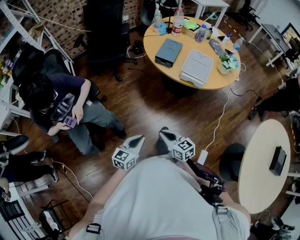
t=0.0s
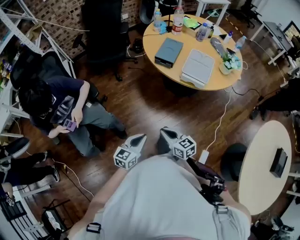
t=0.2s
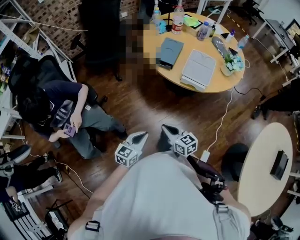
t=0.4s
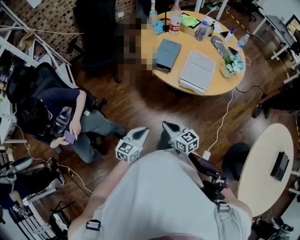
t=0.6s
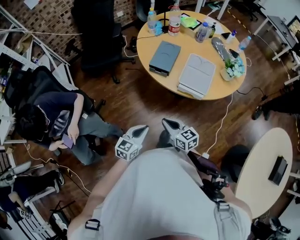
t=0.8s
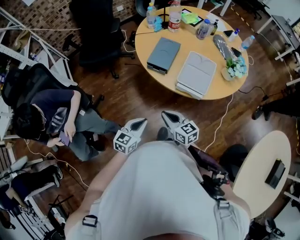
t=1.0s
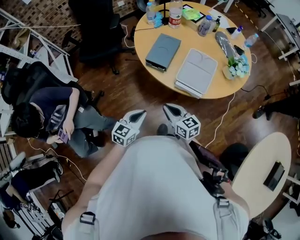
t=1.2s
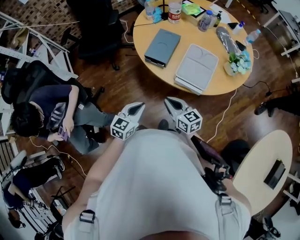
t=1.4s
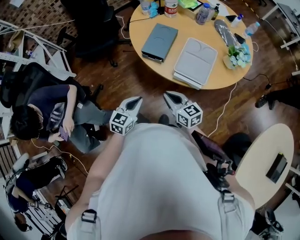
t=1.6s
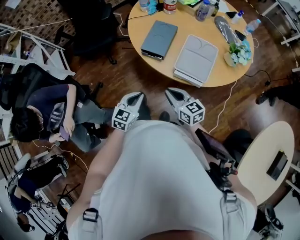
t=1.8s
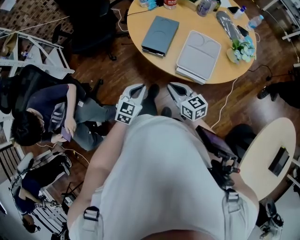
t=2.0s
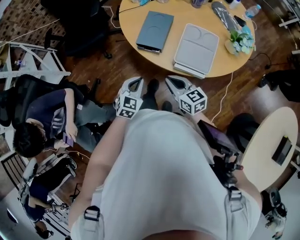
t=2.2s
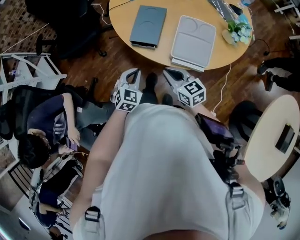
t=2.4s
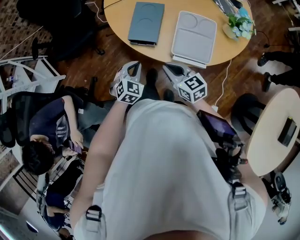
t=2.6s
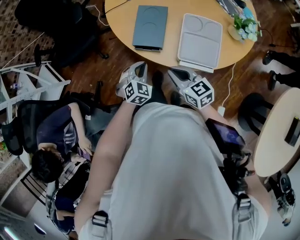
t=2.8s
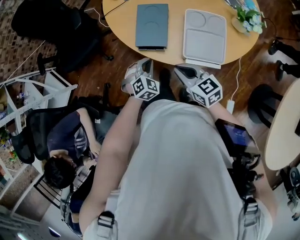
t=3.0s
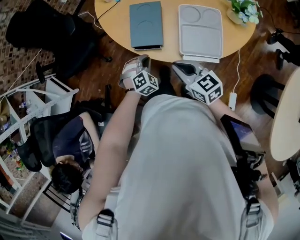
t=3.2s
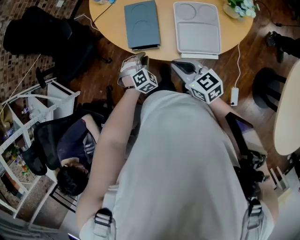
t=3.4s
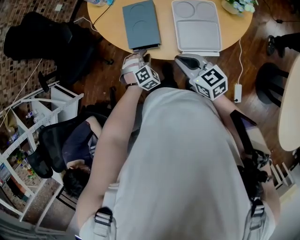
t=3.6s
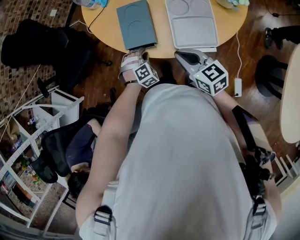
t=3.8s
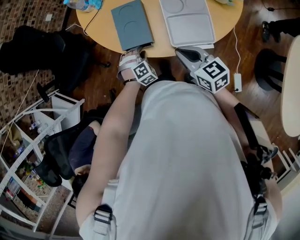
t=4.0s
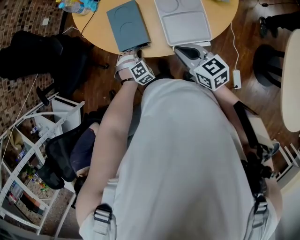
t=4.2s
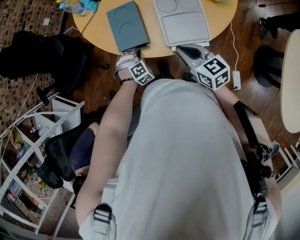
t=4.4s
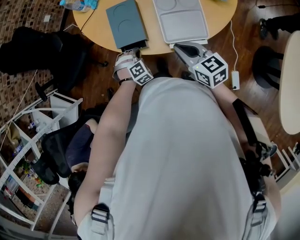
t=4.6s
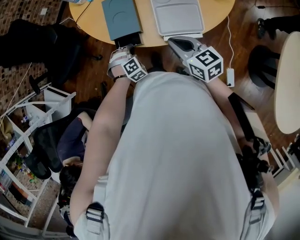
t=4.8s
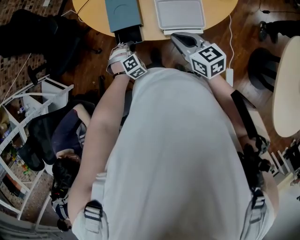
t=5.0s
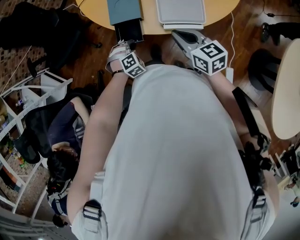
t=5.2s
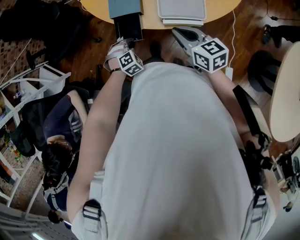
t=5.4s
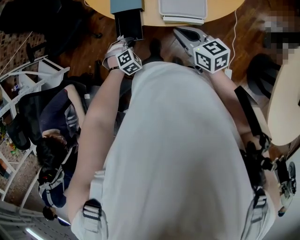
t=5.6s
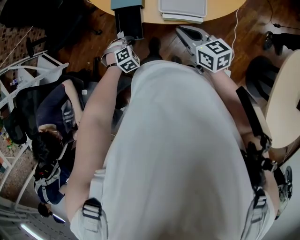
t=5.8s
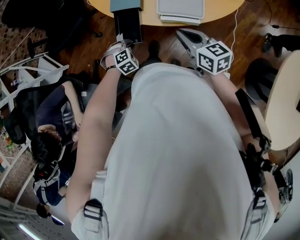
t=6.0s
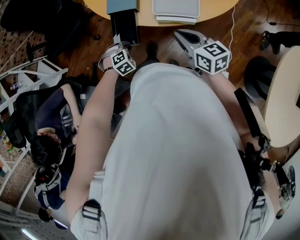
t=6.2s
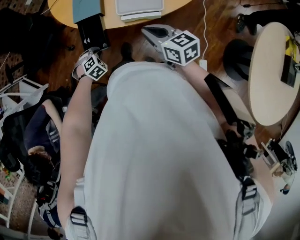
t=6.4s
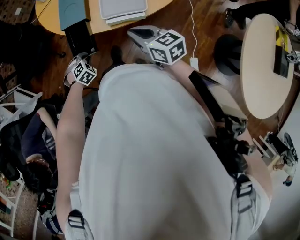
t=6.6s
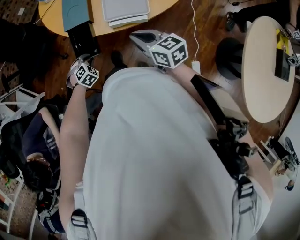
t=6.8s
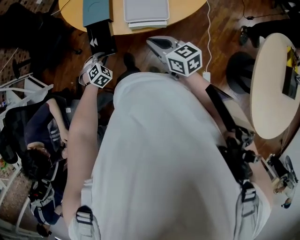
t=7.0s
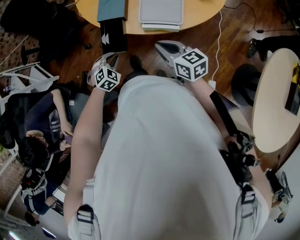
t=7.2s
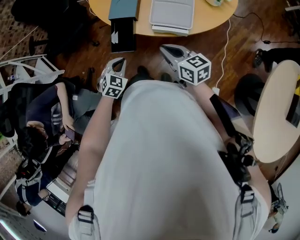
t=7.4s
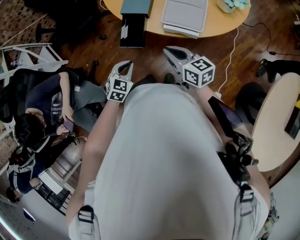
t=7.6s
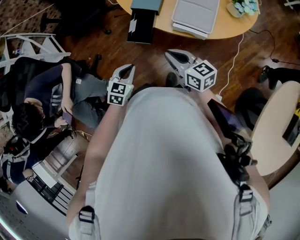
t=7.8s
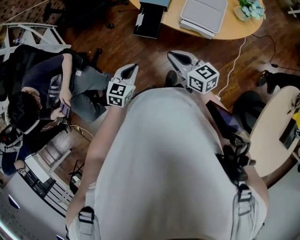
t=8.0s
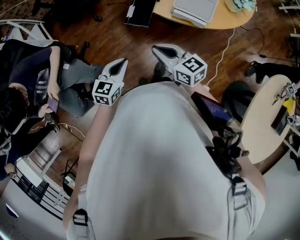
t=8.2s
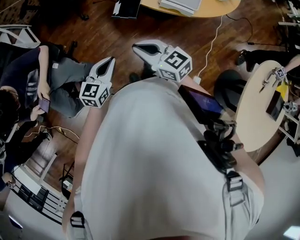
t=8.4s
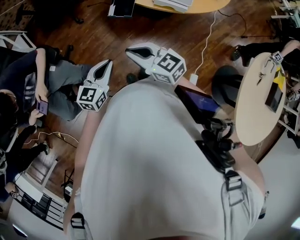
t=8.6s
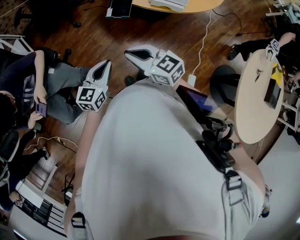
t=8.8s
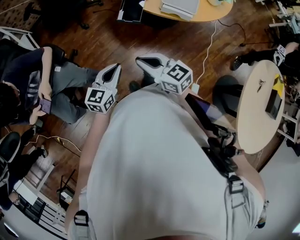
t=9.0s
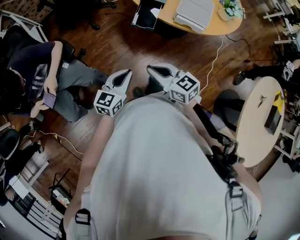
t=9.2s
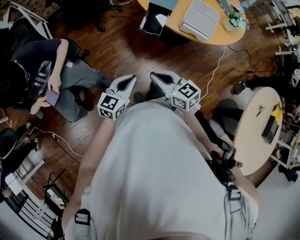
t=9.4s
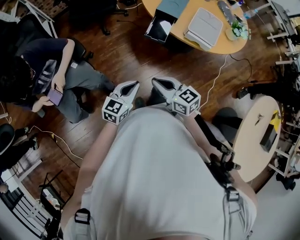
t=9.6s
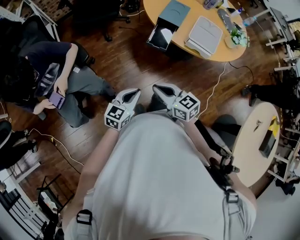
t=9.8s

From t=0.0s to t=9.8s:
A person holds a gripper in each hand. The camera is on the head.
From t=0.0s to t=1.4s: The right gripper goes roughly 30 cm forward and to the right. Meanwhile the left gripper heads forward, covering roughly 30 cm.
From t=1.4s to t=2.8s: The right gripper moves forward, about 10 cm; the left gripper is displaced forward and downward by some 20 cm, and rotates roughly 40 degrees.
From t=2.8s to t=4.2s: The left gripper moves downward and forward, some 10 cm, and rolls clockwise, seen from behind, by approximately 40 degrees, while the right gripper shifts about 5 cm to the right.
From t=4.2s to t=5.6s: The left gripper travels backward by roughly 15 cm. The right gripper goes roughly 5 cm backward.
From t=5.6s to t=7.0s: The right gripper goes roughly 5 cm backward.
From t=7.0s to t=8.4s: The right gripper moves to the left and backward, about 25 cm, and turns by some 30 degrees. The left gripper goes roughly 30 cm backward, upward and to the left, and rotates around the line of its fingers by some 60 degrees, counterclockwise from behind.
From t=8.4s to t=9.8s: The right gripper moves backward and to the left, approximately 10 cm. Meanwhile the left gripper goes about 5 cm backward.

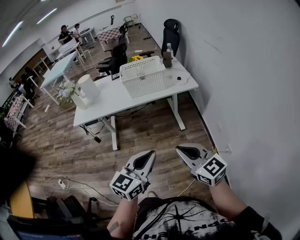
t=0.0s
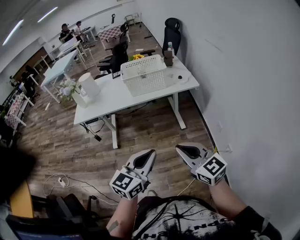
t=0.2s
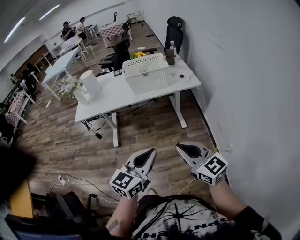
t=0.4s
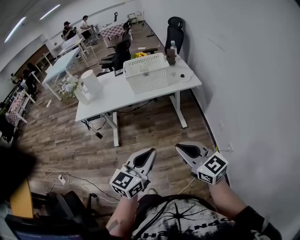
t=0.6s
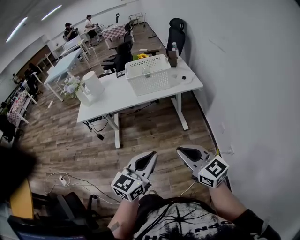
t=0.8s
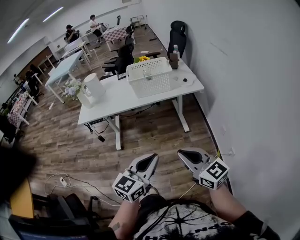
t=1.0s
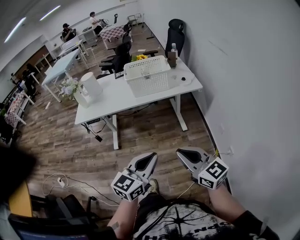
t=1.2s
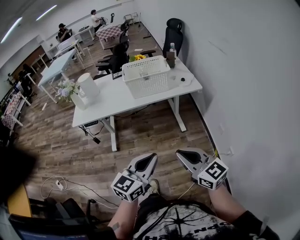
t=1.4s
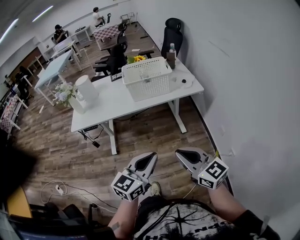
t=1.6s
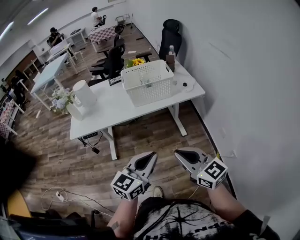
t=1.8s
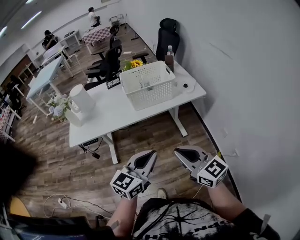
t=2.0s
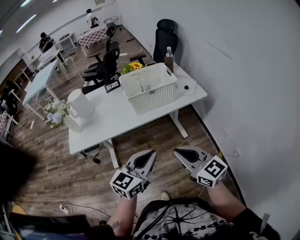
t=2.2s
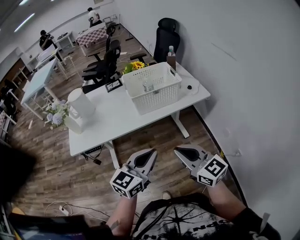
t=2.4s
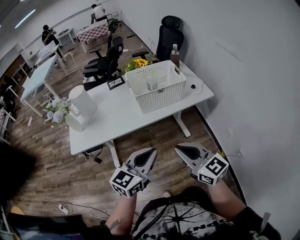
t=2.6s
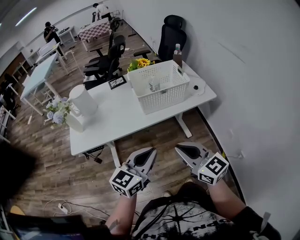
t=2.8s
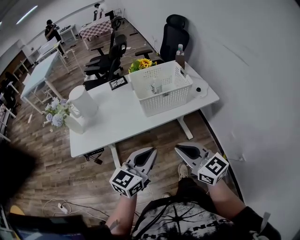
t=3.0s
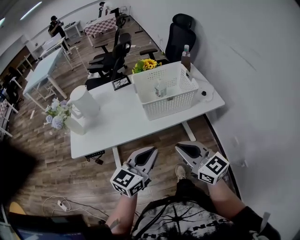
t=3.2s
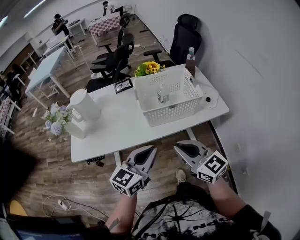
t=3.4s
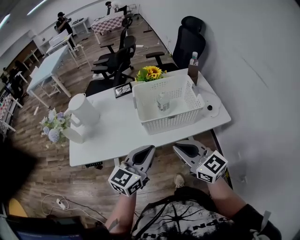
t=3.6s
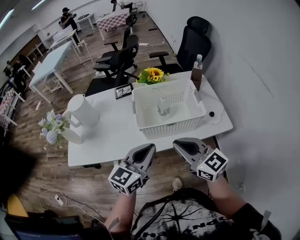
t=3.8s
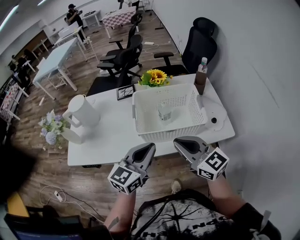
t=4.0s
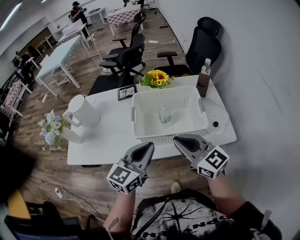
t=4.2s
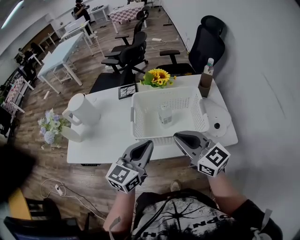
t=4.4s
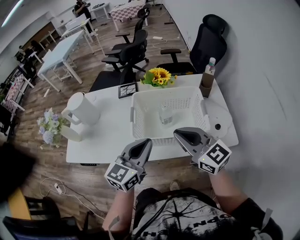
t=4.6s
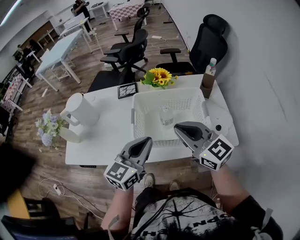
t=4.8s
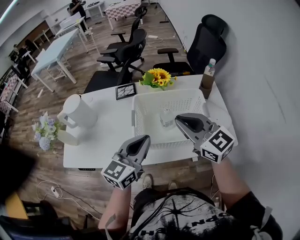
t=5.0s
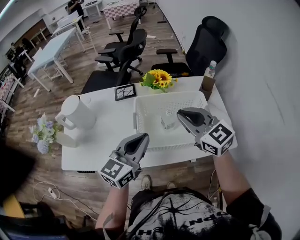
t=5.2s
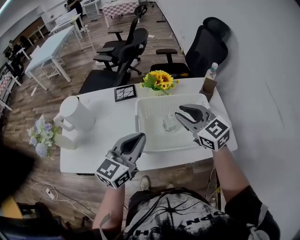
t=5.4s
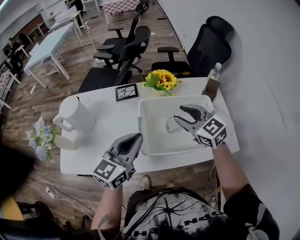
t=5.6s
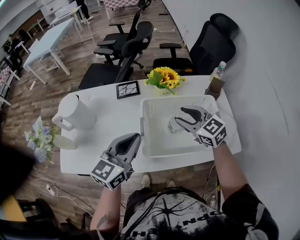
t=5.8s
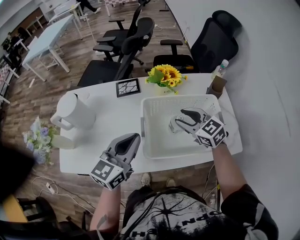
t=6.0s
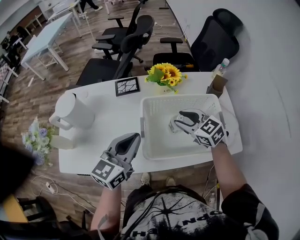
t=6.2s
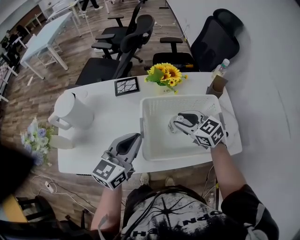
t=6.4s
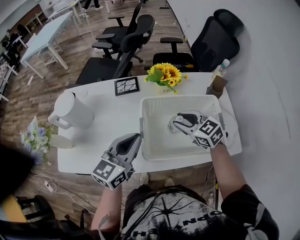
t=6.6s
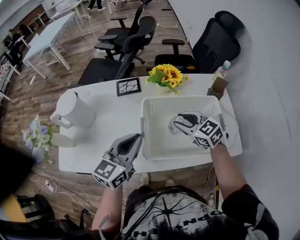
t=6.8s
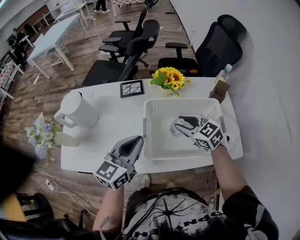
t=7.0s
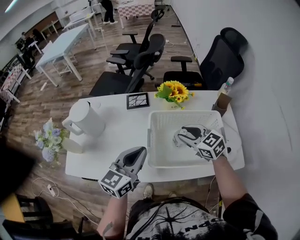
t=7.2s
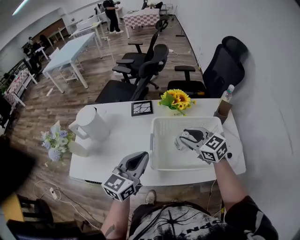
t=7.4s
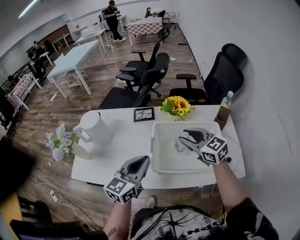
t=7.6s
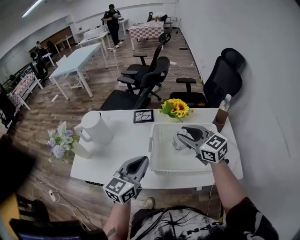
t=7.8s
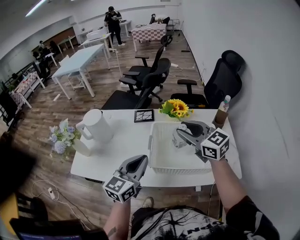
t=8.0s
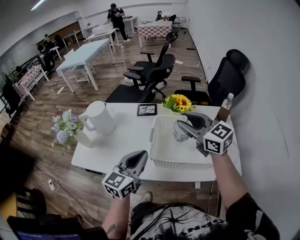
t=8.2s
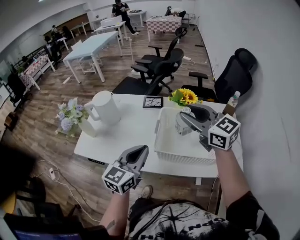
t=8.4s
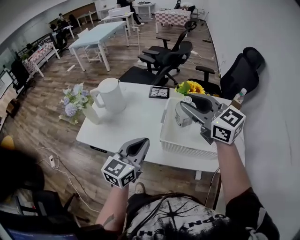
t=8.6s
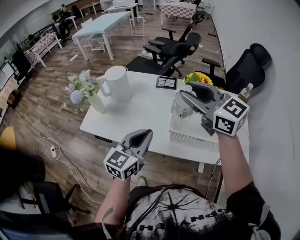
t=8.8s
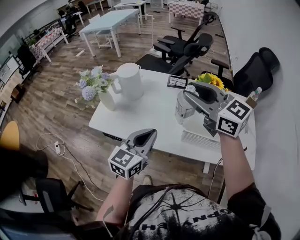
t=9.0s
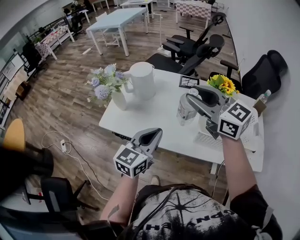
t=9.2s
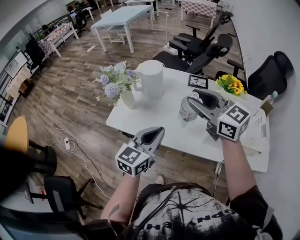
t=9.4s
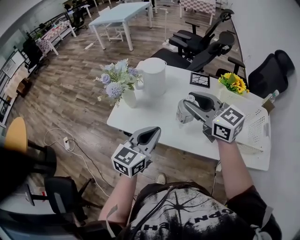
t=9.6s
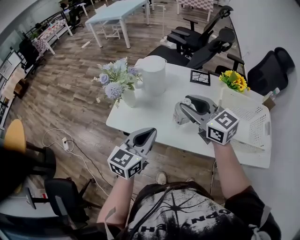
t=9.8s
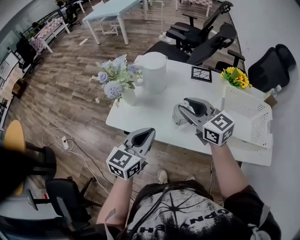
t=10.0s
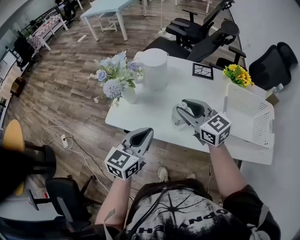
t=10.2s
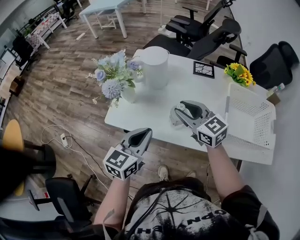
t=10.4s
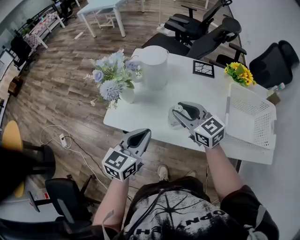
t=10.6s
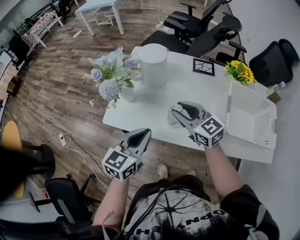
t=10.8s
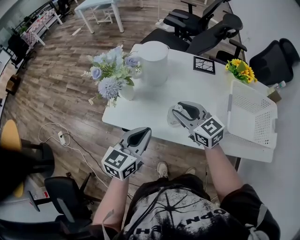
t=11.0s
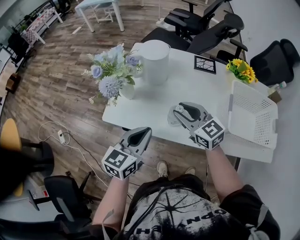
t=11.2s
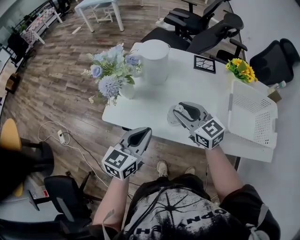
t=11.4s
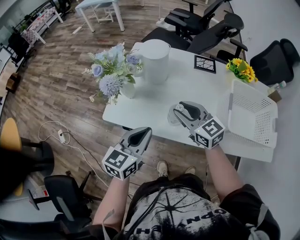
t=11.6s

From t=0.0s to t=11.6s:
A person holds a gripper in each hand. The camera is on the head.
From t=0.0s to t=1.4s: The grippers make only small movements.
From t=1.4s to t=2.8s: The grippers both shift forward and to the left by some 25 cm.
From t=2.8s to t=4.4s: The grippers both shift forward by approximately 30 cm.
From t=4.4s to t=5.8s: The right gripper moves forward, approximately 20 cm, swivels approximately 20 degrees, and opens. The left gripper heads forward and to the left, covering about 15 cm.
From t=5.8s to t=7.2s: There are only small adjustments of the grippers.
From t=7.2s to t=8.8s: The right gripper goes about 25 cm upward and to the left, and turns by some 30 degrees; the left gripper travels backward and to the left by some 15 cm.
From t=8.8s to t=10.2s: The left gripper heads to the left, covering about 20 cm. The right gripper moves to the left and downward, roughly 30 cm.
From t=10.2s to t=11.6s: The right gripper heads downward, covering about 5 cm.

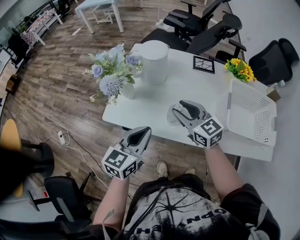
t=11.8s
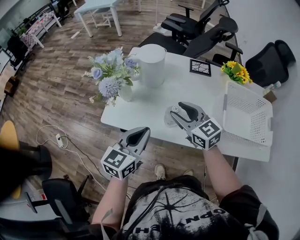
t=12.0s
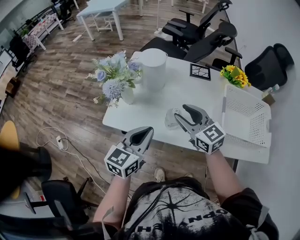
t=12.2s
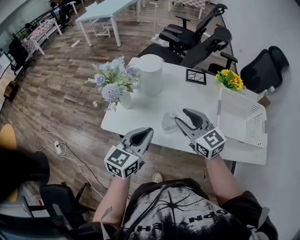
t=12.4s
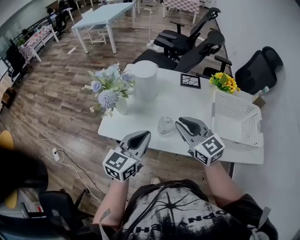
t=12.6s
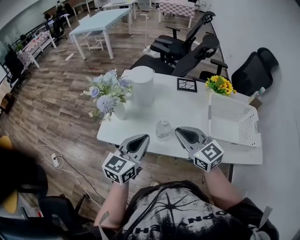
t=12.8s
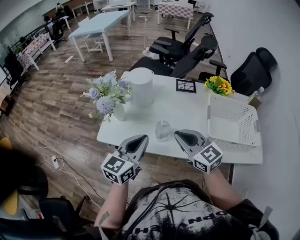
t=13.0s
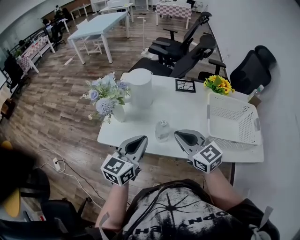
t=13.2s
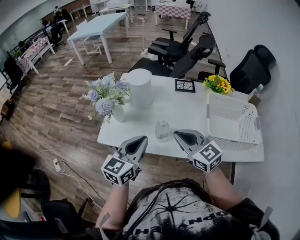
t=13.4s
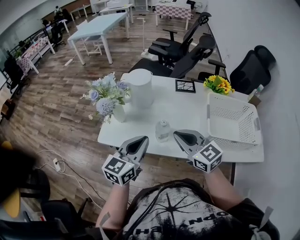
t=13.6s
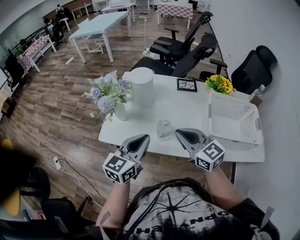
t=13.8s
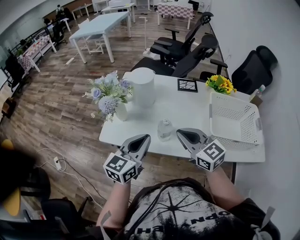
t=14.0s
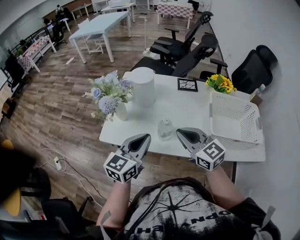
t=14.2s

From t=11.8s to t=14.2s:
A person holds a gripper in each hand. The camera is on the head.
From t=11.8s to t=13.0s: The left gripper moves approximately 5 cm. Meanwhile the right gripper is displaced backward and upward by about 10 cm, and closes up.
From t=13.0s to t=14.2s: Neither gripper changes place.
